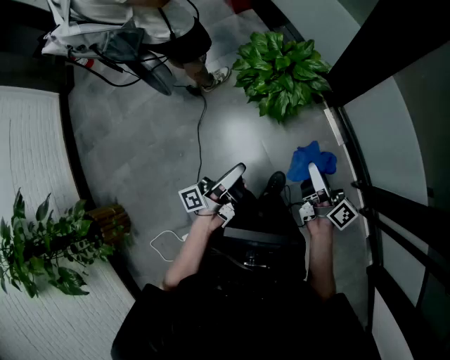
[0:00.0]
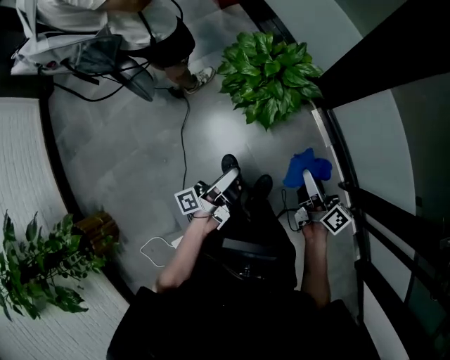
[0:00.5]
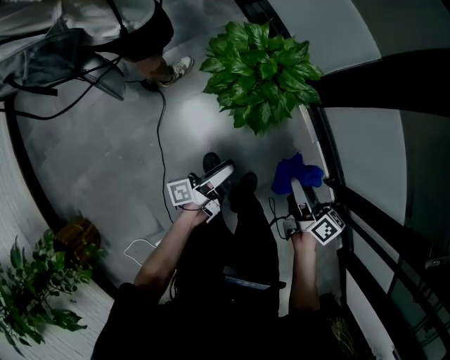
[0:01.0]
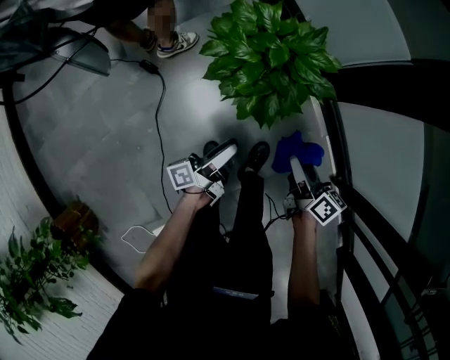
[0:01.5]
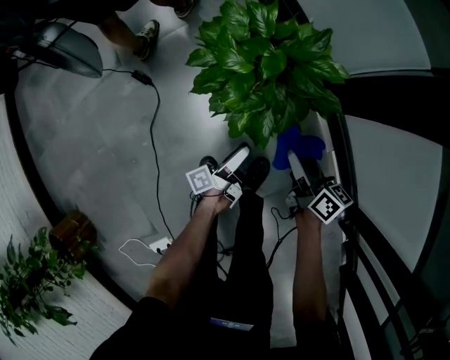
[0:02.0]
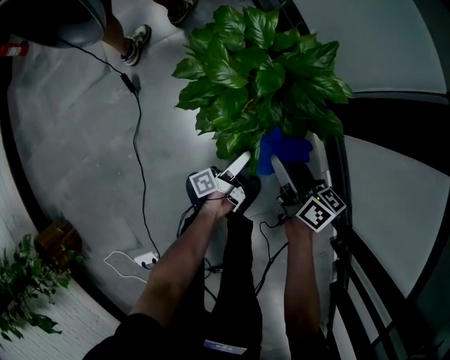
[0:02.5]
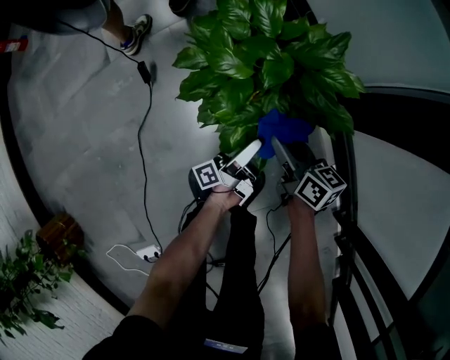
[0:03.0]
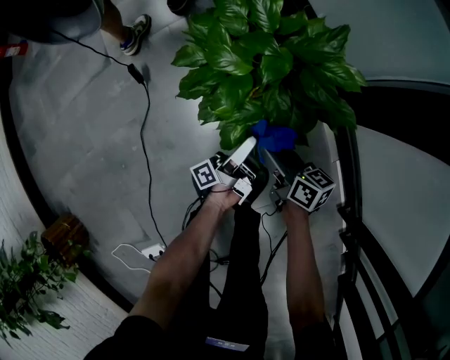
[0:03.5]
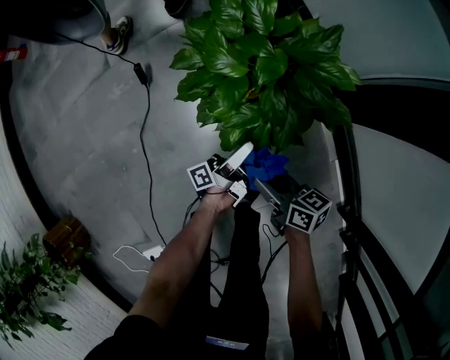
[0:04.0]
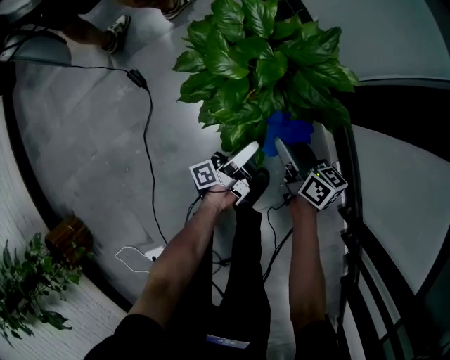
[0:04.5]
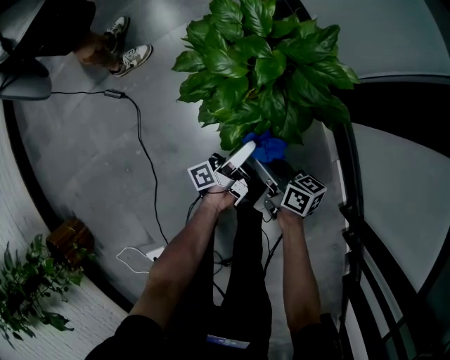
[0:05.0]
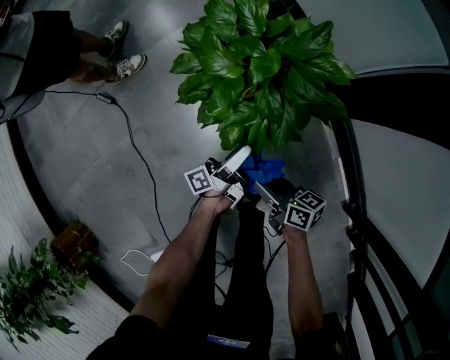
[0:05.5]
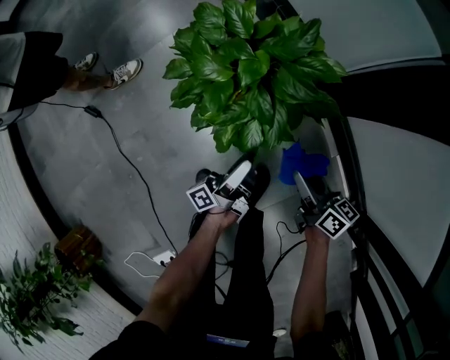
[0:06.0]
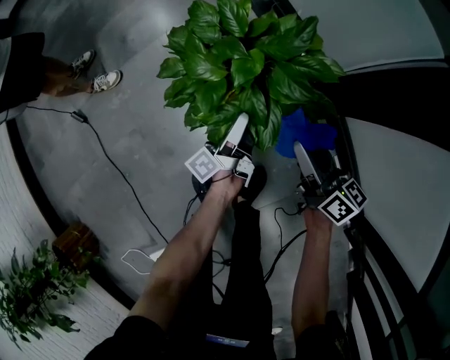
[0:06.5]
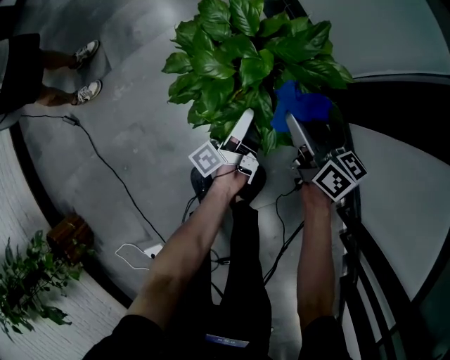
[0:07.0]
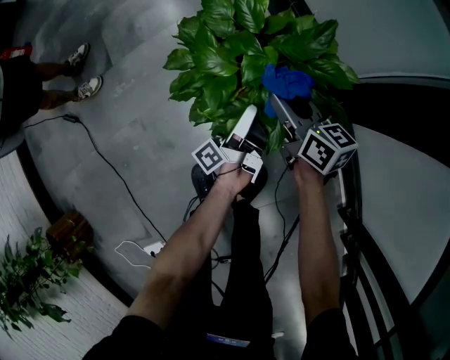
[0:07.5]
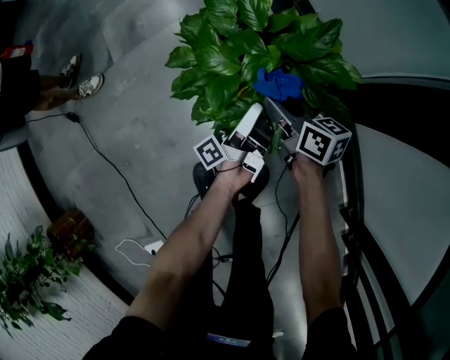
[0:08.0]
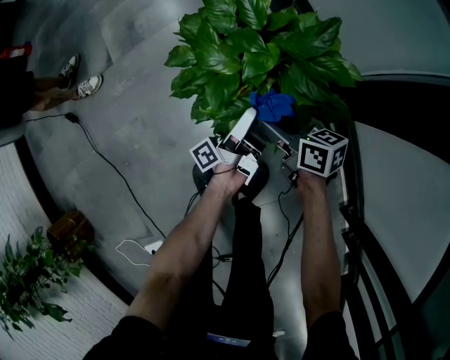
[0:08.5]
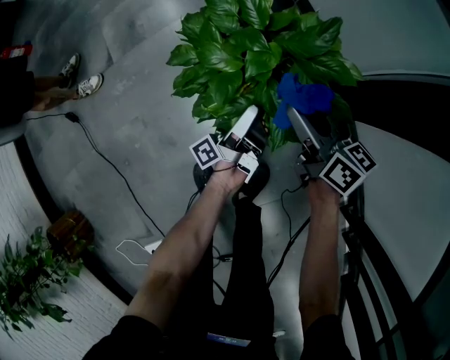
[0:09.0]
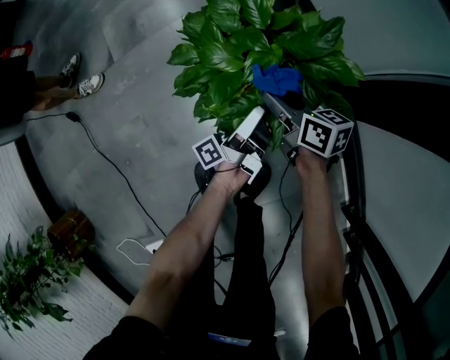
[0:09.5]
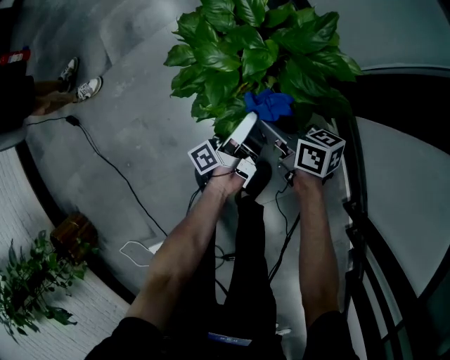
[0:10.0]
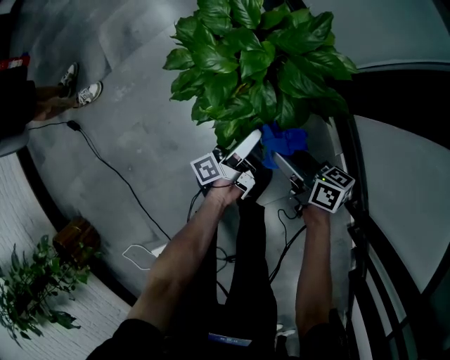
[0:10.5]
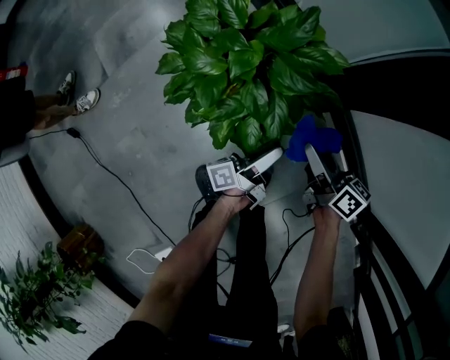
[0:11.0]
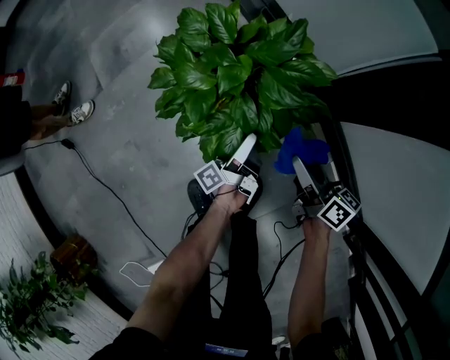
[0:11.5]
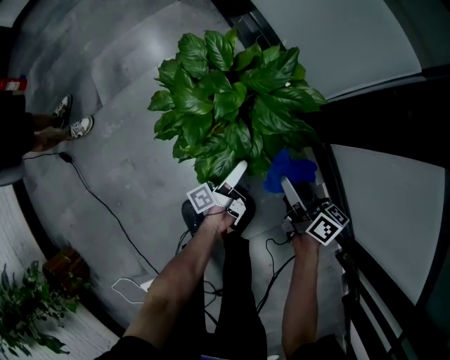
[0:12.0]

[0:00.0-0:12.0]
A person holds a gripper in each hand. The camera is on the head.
0:00.0 to 0:02.0: The right gripper shifts approximately 30 cm downward, and swivels some 30 degrees.
0:02.0 to 0:04.0: The right gripper shifts approximately 10 cm downward, and turns by approximately 20 degrees.
0:04.0 to 0:06.0: The right gripper shifts by about 15 cm, and changes its angle by approximately 20 degrees.
0:06.0 to 0:08.0: The right gripper changes place by about 20 cm.
0:08.0 to 0:10.0: The right gripper moves some 10 cm upward and comes back.
0:10.0 to 0:12.0: The right gripper ends up approximately 15 cm from where it was, and rotates approximately 30 degrees.

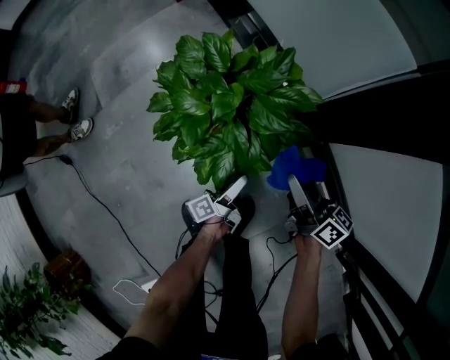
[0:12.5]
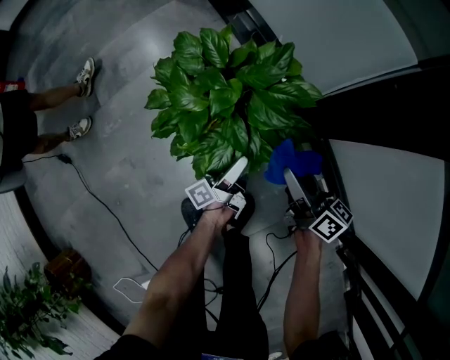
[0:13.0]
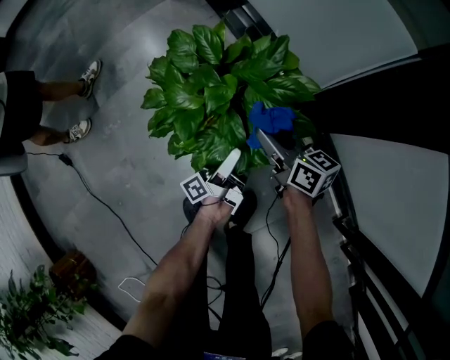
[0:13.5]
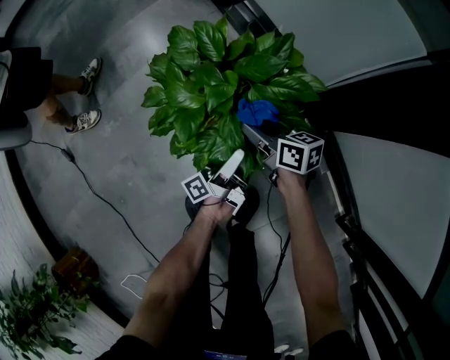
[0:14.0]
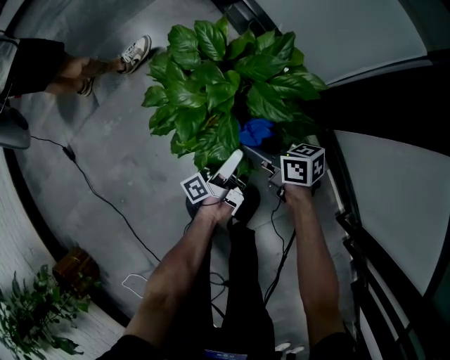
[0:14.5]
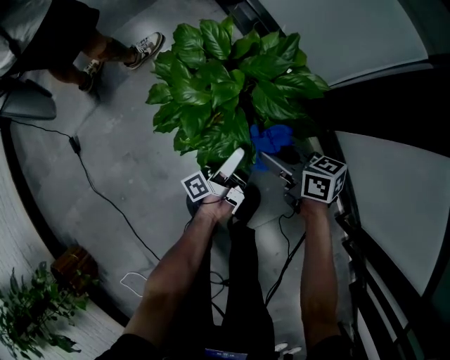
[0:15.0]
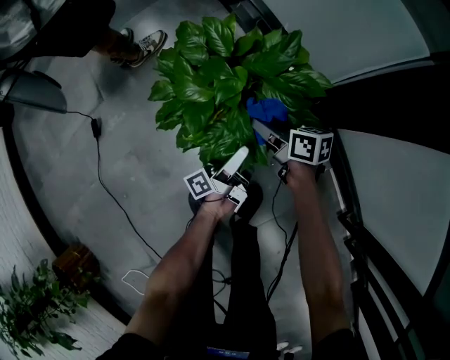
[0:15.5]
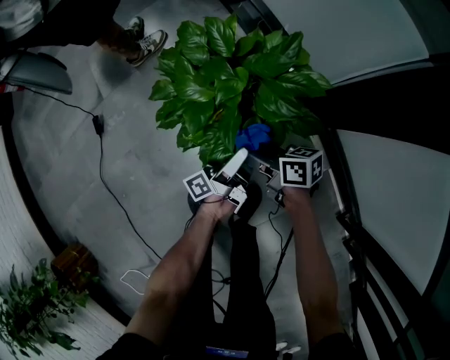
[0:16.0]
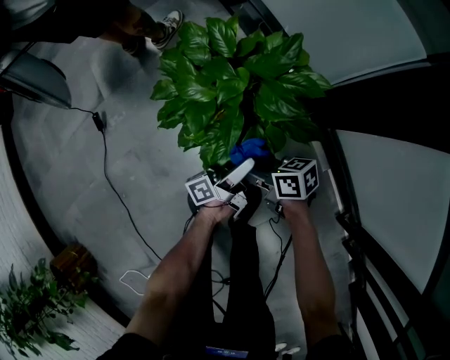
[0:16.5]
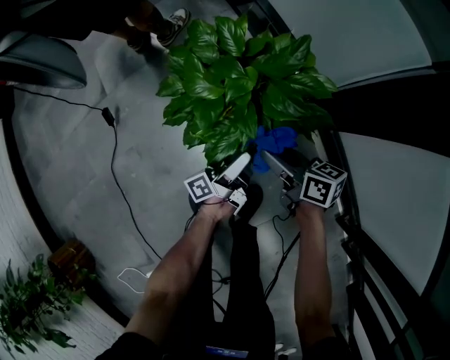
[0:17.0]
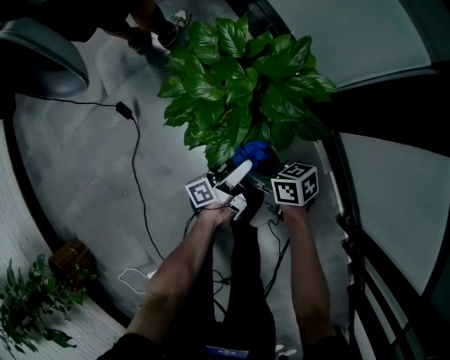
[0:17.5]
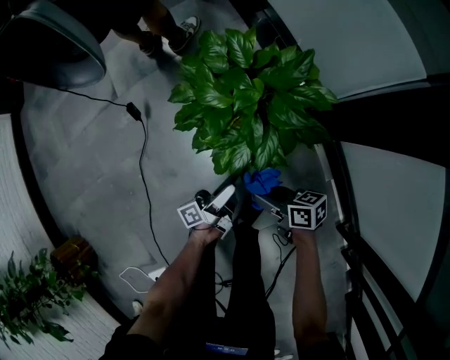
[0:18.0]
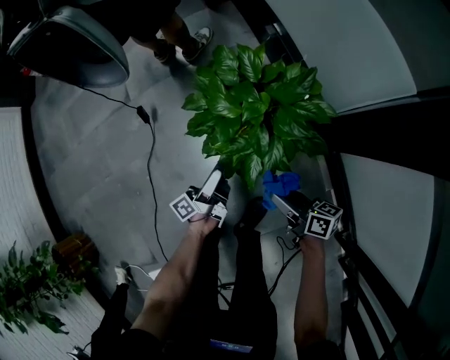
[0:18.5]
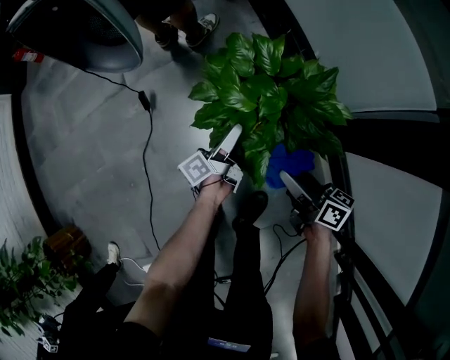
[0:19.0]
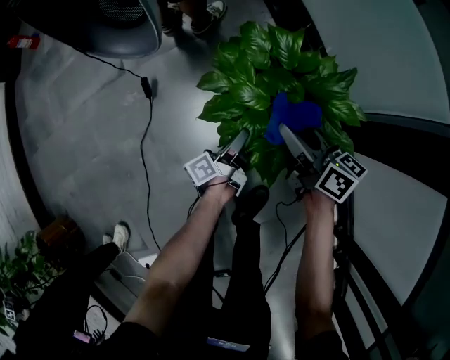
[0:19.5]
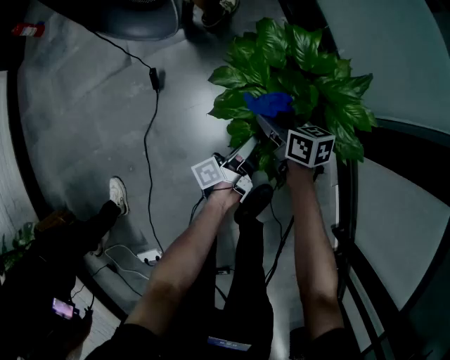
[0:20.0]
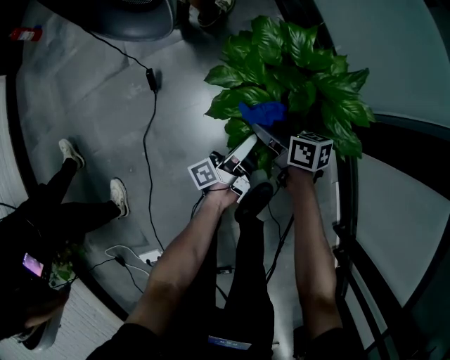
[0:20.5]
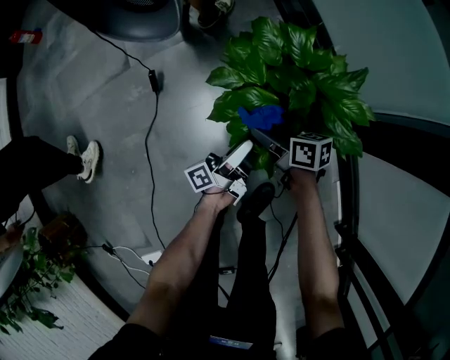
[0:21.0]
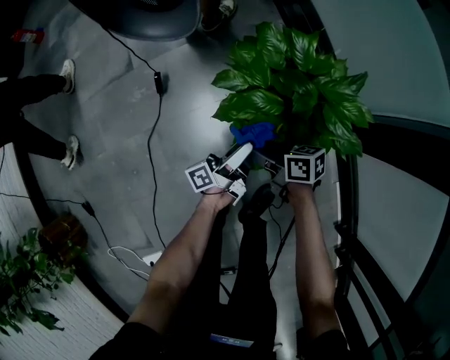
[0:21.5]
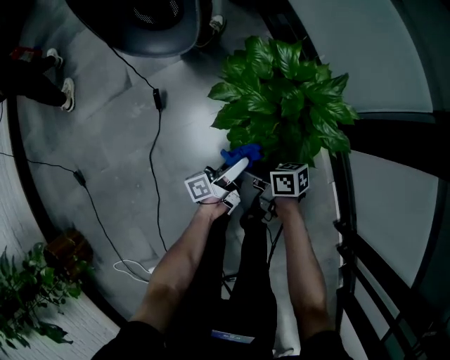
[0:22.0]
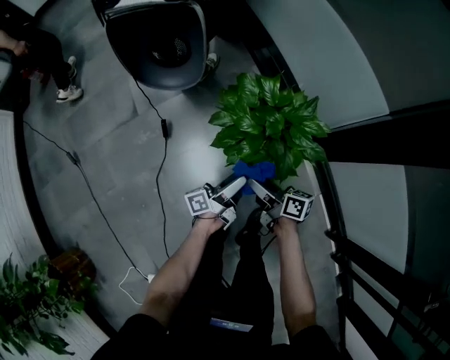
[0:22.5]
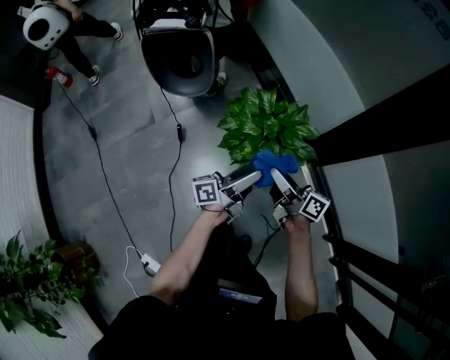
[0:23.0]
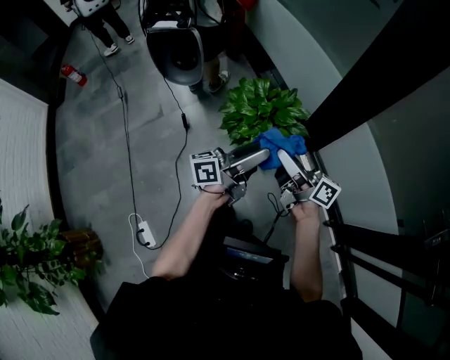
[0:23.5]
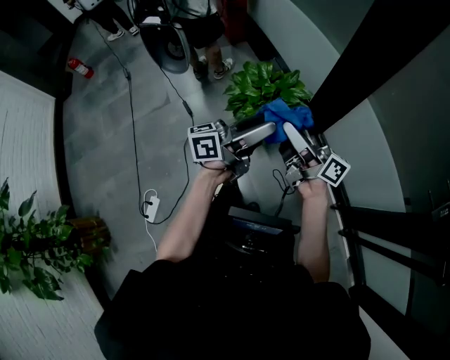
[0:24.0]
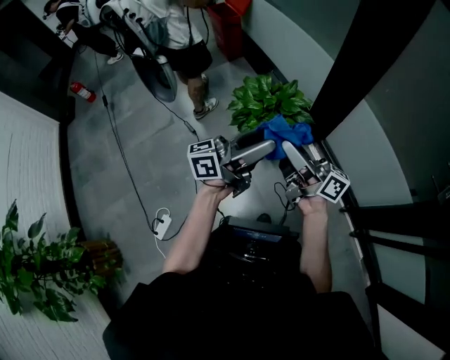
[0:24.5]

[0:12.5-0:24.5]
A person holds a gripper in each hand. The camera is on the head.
0:12.5 to 0:14.5: The right gripper ends up roughly 15 cm from where it was, and swivels roughly 30 degrees.
0:14.5 to 0:16.5: The right gripper ends up about 10 cm from where it was.
0:16.5 to 0:18.5: The right gripper goes up and down, some 10 cm each way, reversing 2 times.
0:18.5 to 0:20.5: The right gripper moves roughly 25 cm.
0:20.5 to 0:22.5: The right gripper is displaced upward by approximately 20 cm.
0:22.5 to 0:24.5: The right gripper heads upward, covering some 40 cm, and tips its fingers upward by roughly 40 degrees.

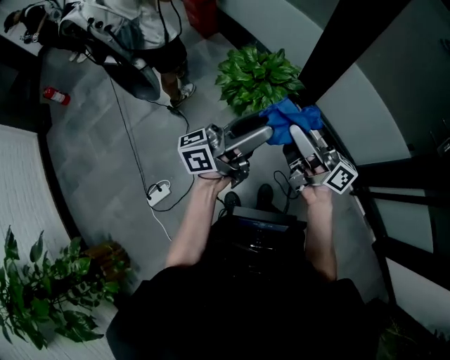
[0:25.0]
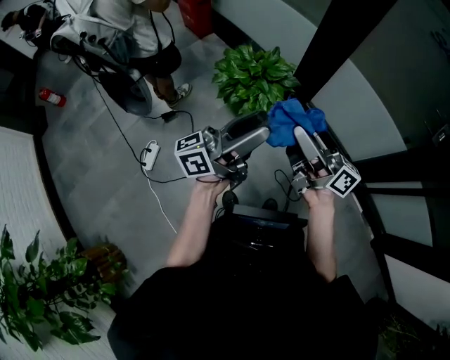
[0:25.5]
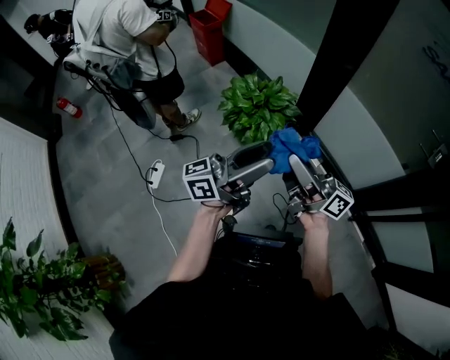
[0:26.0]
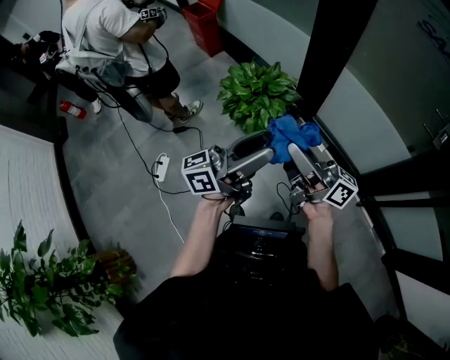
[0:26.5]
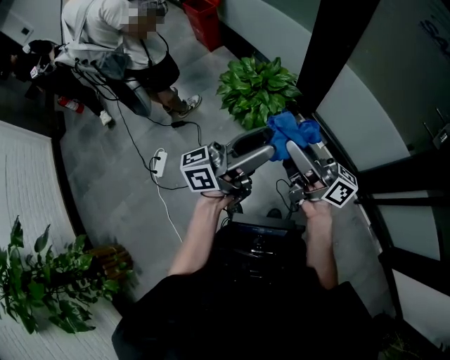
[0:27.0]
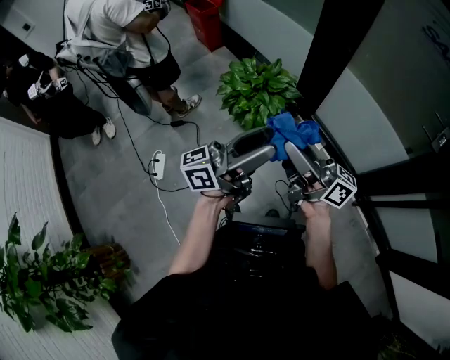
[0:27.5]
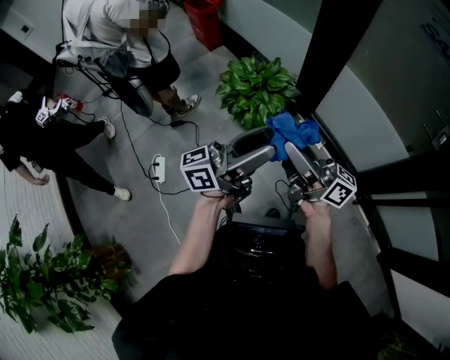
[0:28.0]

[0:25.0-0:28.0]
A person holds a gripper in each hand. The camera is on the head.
0:25.0 to 0:26.5: The right gripper moves approximately 10 cm.
